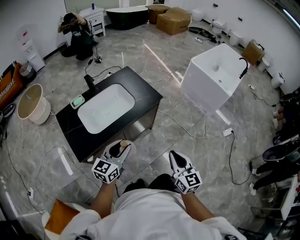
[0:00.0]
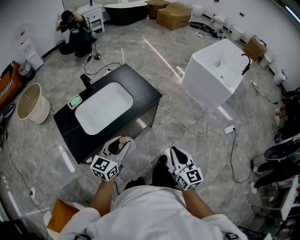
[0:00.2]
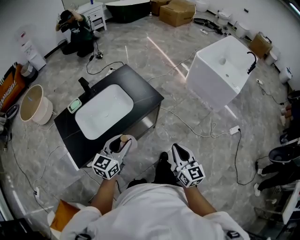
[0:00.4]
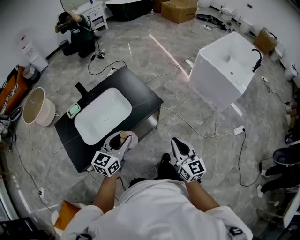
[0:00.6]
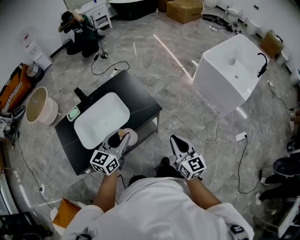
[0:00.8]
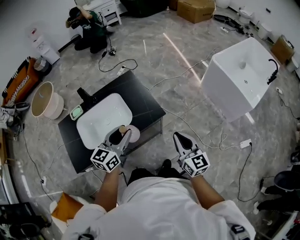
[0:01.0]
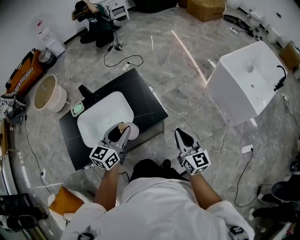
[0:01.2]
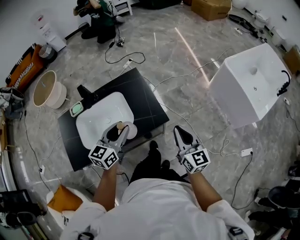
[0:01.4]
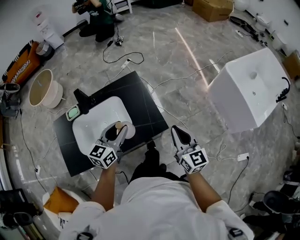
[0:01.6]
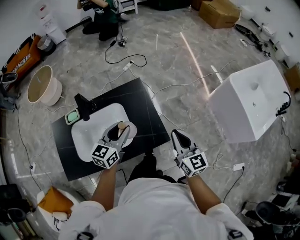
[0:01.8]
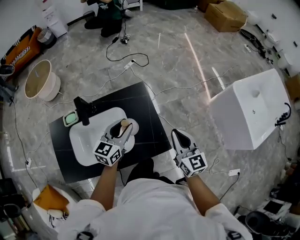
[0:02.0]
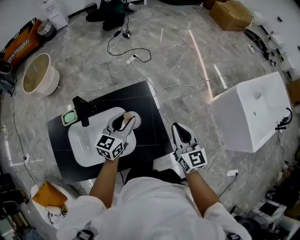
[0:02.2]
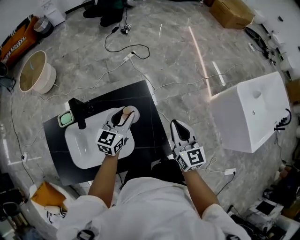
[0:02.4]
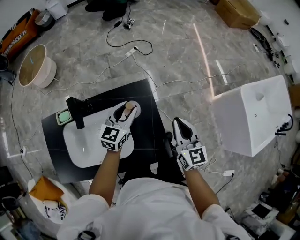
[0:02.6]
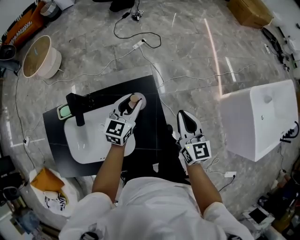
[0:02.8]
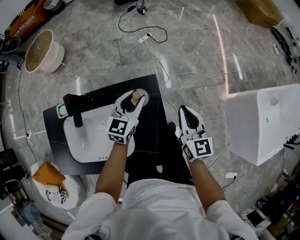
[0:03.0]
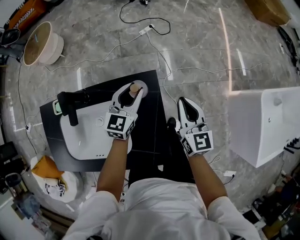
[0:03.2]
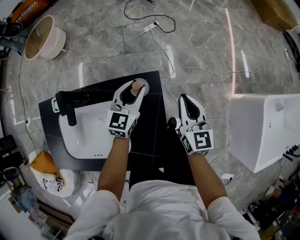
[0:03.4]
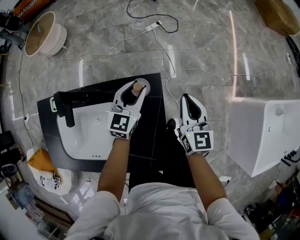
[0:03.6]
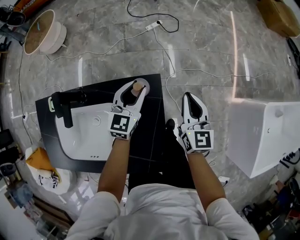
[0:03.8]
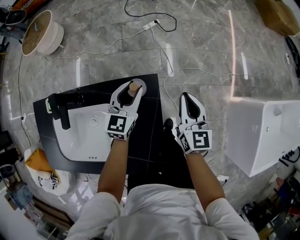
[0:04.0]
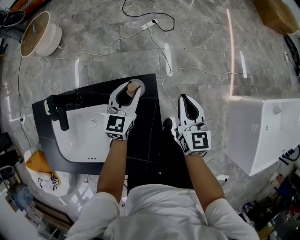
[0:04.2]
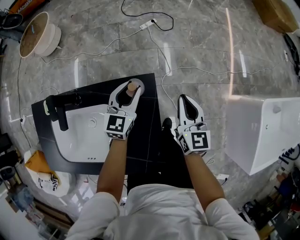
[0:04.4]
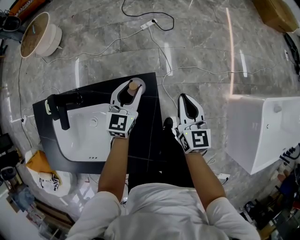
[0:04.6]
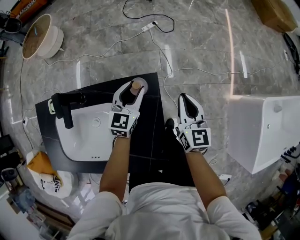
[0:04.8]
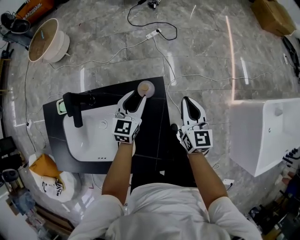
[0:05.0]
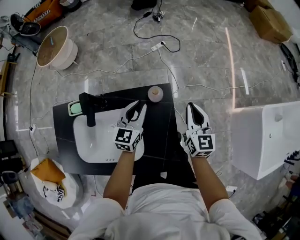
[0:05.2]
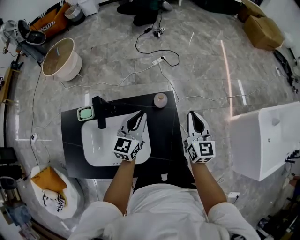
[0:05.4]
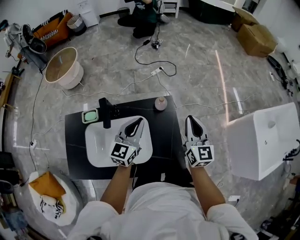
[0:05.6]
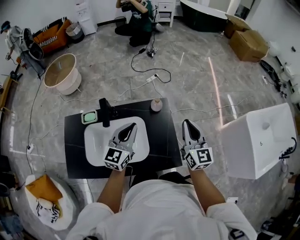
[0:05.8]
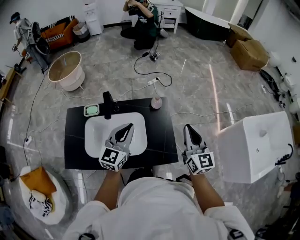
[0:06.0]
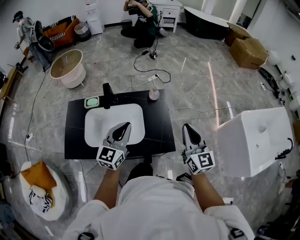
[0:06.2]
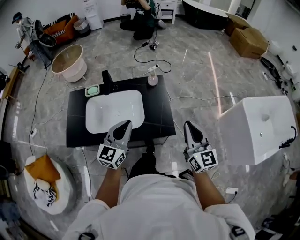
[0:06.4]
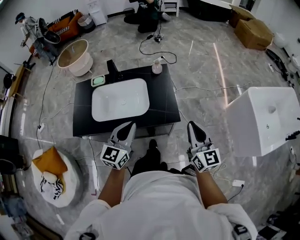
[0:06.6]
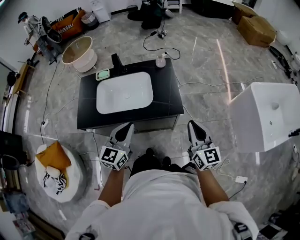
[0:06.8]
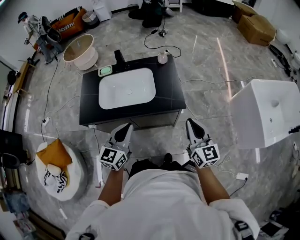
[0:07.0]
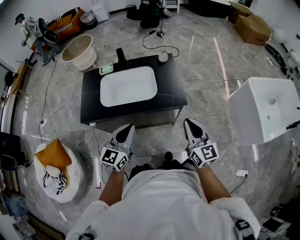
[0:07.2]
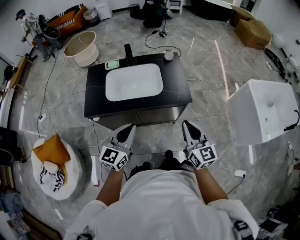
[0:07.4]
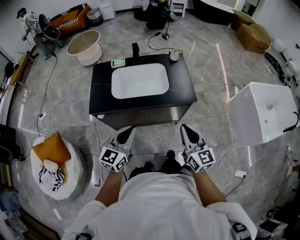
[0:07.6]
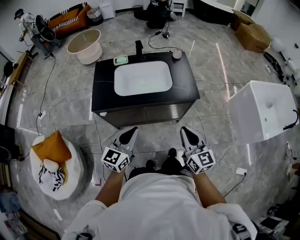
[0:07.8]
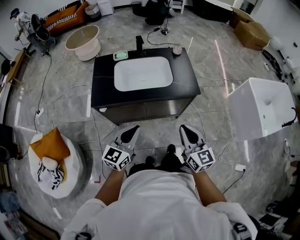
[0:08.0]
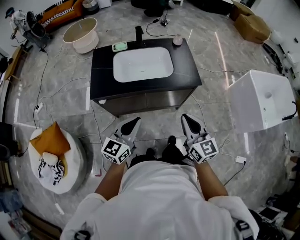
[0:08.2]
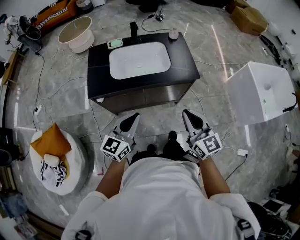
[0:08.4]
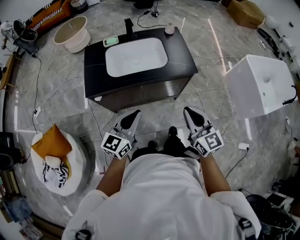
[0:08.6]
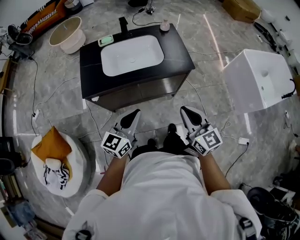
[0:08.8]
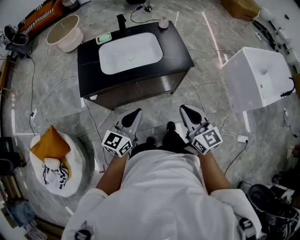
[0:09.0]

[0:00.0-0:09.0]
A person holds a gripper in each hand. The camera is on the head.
0:00.0 to 0:01.6: Both grippers travel together forward, approximately 40 cm. The left gripper changes its angle by approximately 20 degrees.
0:01.6 to 0:03.0: The grippers both shift forward by approximately 30 cm.
0:03.0 to 0:04.4: The right gripper travels forward and downward by about 10 cm. The left gripper heads downward and forward, covering approximately 10 cm.
0:04.4 to 0:06.0: The grippers both shift backward and upward by about 35 cm. The left gripper closes its fingers.
0:06.0 to 0:07.6: The pair of grippers is taken backward, about 40 cm.
0:07.6 to 0:09.0: The left gripper shifts by about 5 cm. The right gripper travels backward by approximately 5 cm.

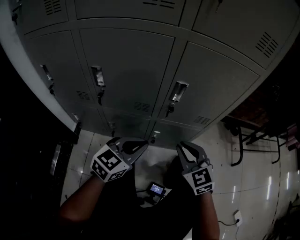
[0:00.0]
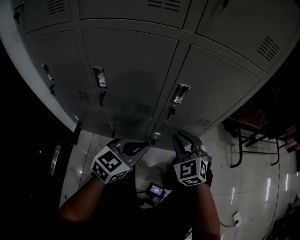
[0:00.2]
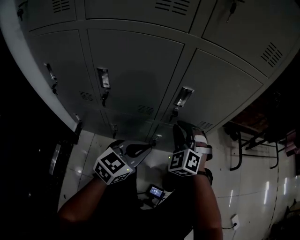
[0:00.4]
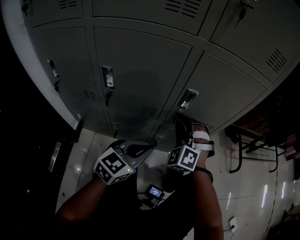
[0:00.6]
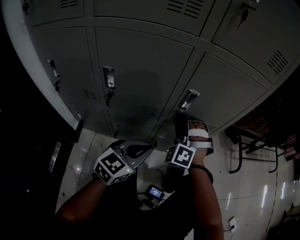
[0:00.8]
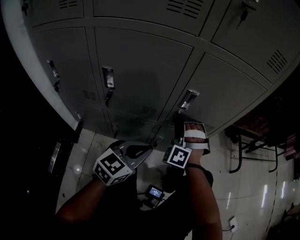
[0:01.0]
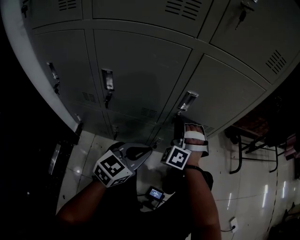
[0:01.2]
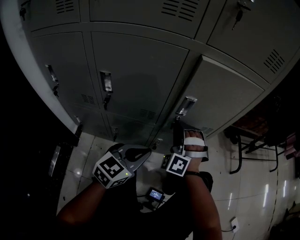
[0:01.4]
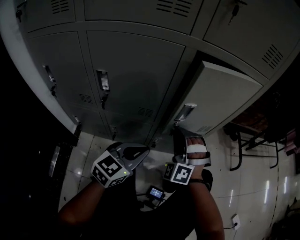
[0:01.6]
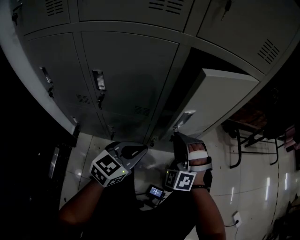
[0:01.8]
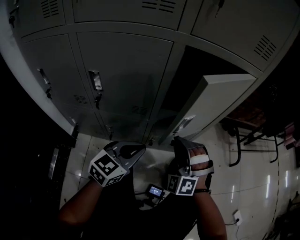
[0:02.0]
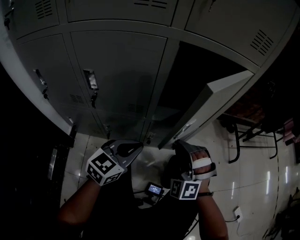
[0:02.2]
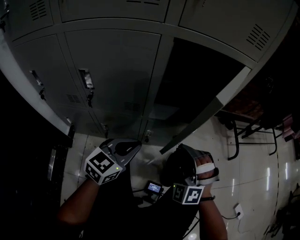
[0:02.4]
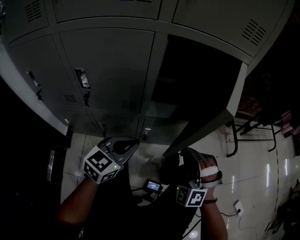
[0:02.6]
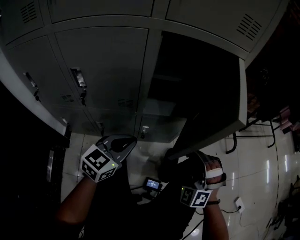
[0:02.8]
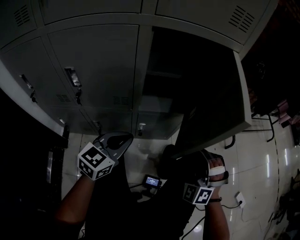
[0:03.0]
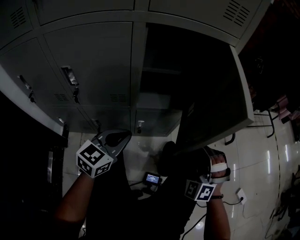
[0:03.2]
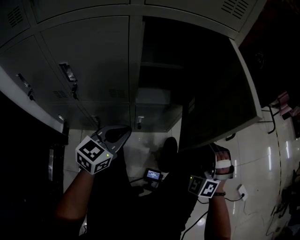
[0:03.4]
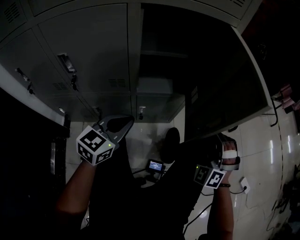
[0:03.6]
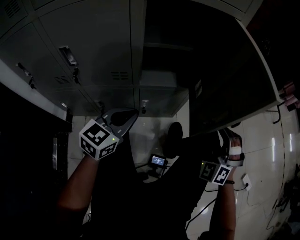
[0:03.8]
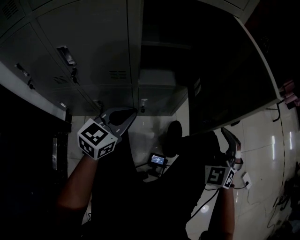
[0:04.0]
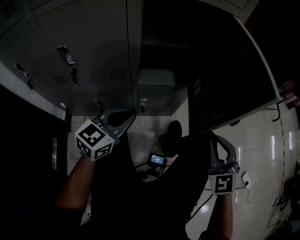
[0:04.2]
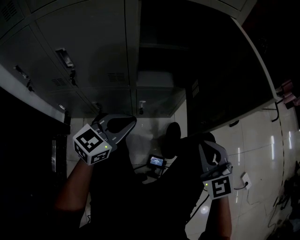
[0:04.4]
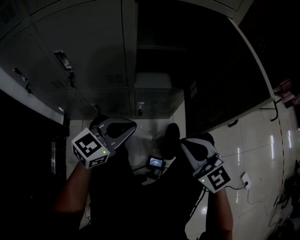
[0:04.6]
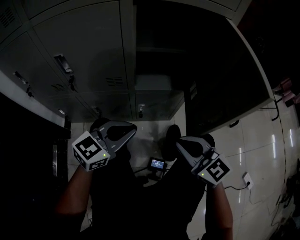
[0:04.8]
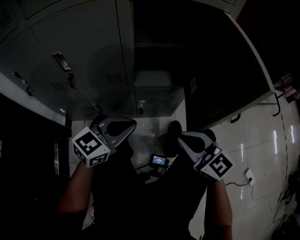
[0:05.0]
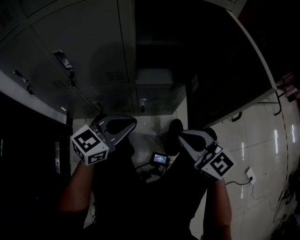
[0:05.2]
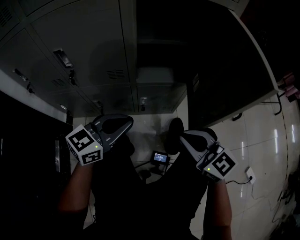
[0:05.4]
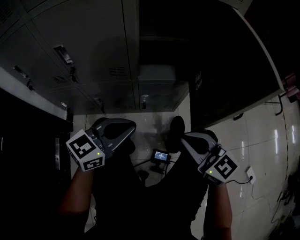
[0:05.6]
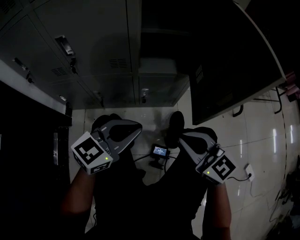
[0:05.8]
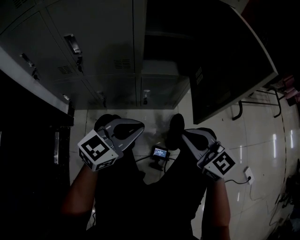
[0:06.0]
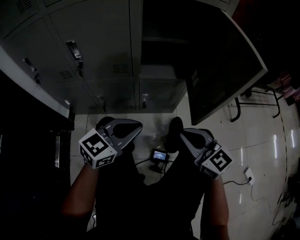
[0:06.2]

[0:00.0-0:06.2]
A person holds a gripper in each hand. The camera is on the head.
0:00.0 to 0:01.6: The right gripper goes some 5 cm to the left, and rolls counterclockwise, seen from behind, by approximately 50 degrees.
0:01.6 to 0:03.2: The right gripper heads to the right, covering some 20 cm.
0:03.2 to 0:04.6: The right gripper heads backward, covering approximately 10 cm, changes its angle by some 70 degrees, and opens and closes again.
0:04.6 to 0:06.2: The left gripper travels backward by approximately 5 cm.

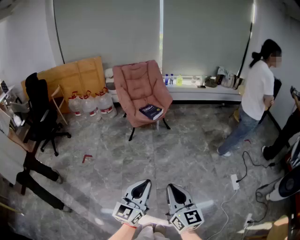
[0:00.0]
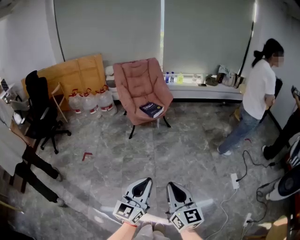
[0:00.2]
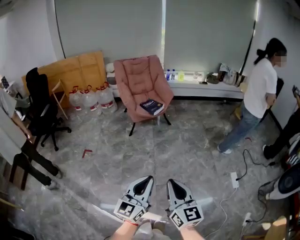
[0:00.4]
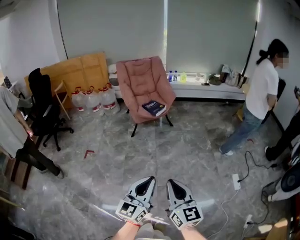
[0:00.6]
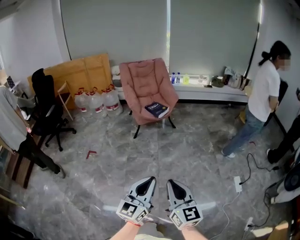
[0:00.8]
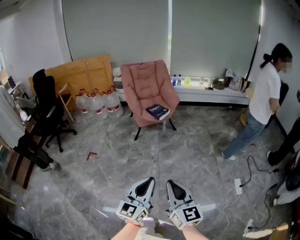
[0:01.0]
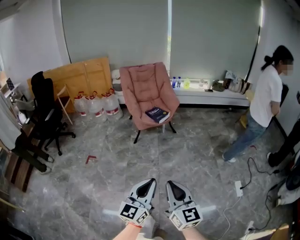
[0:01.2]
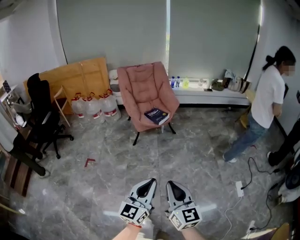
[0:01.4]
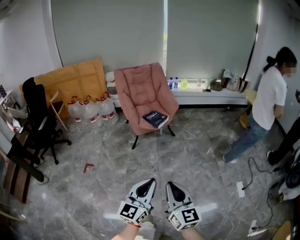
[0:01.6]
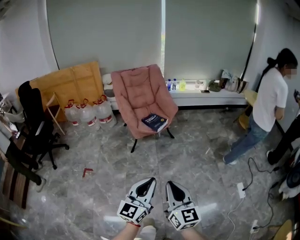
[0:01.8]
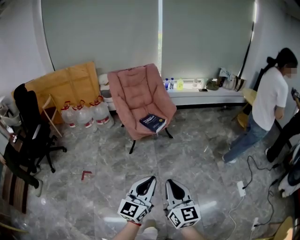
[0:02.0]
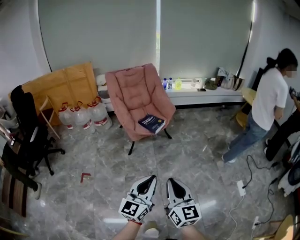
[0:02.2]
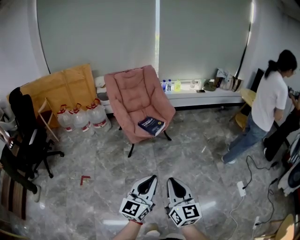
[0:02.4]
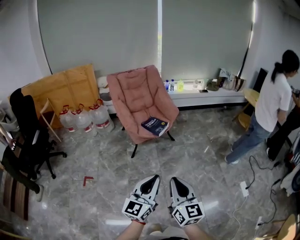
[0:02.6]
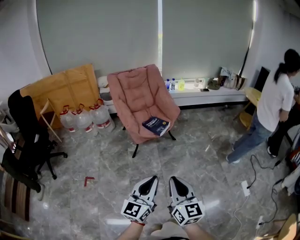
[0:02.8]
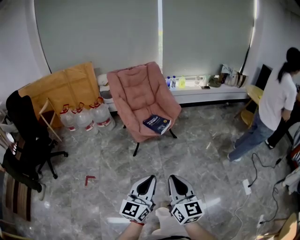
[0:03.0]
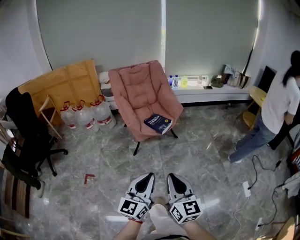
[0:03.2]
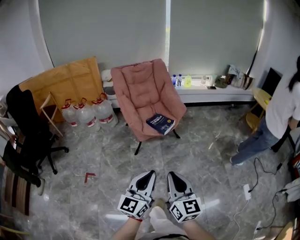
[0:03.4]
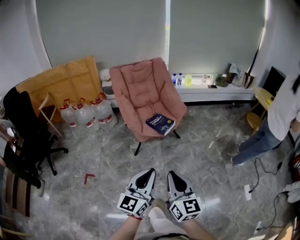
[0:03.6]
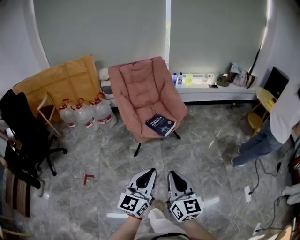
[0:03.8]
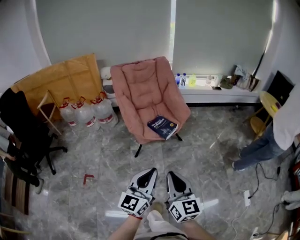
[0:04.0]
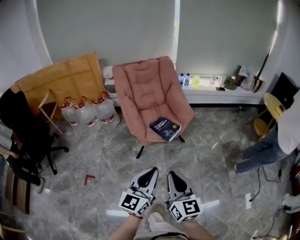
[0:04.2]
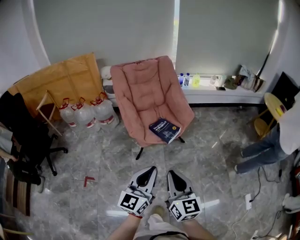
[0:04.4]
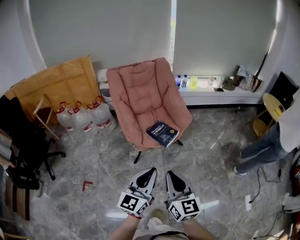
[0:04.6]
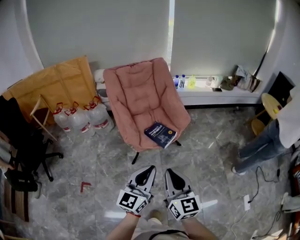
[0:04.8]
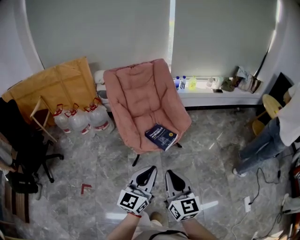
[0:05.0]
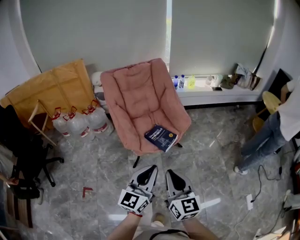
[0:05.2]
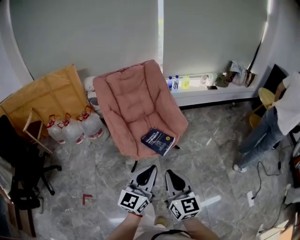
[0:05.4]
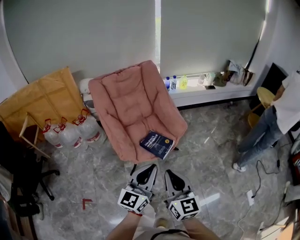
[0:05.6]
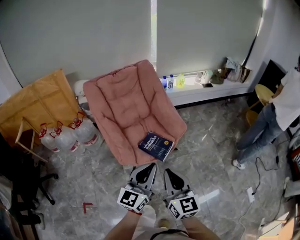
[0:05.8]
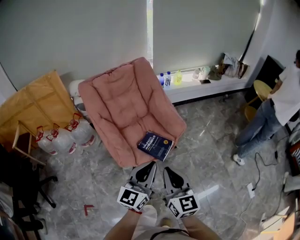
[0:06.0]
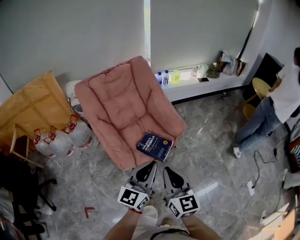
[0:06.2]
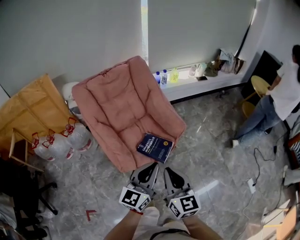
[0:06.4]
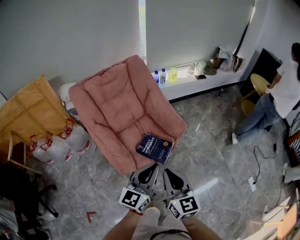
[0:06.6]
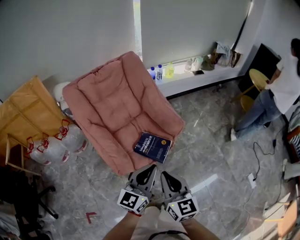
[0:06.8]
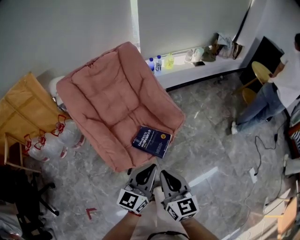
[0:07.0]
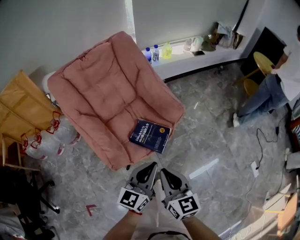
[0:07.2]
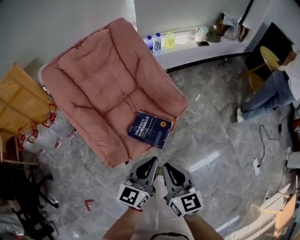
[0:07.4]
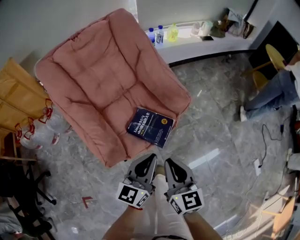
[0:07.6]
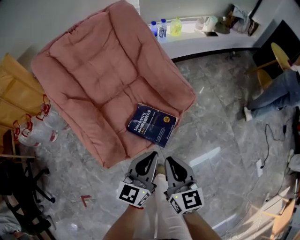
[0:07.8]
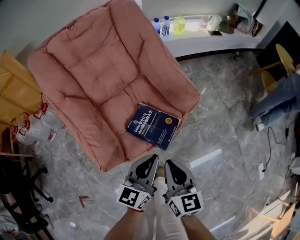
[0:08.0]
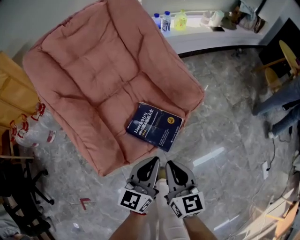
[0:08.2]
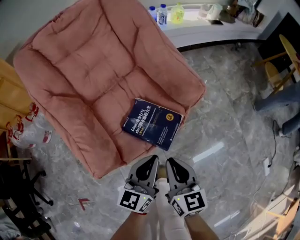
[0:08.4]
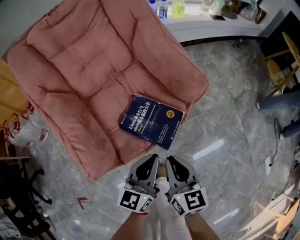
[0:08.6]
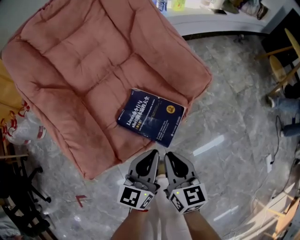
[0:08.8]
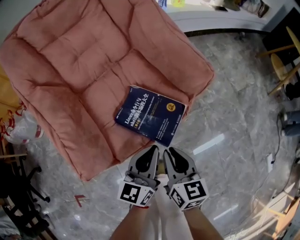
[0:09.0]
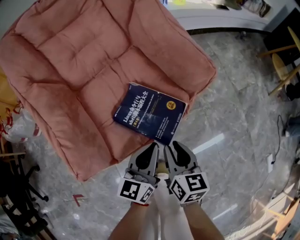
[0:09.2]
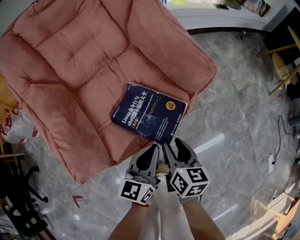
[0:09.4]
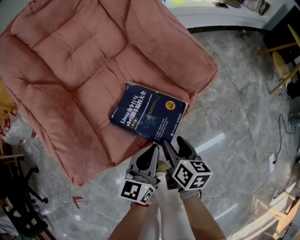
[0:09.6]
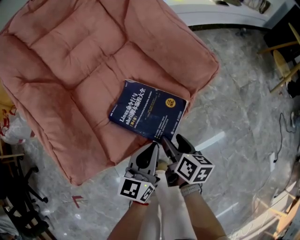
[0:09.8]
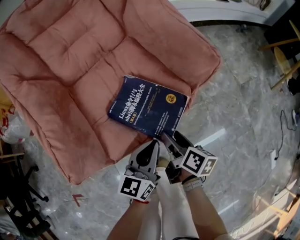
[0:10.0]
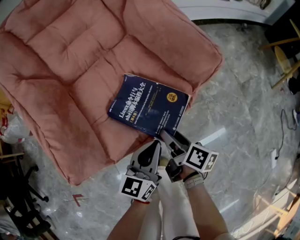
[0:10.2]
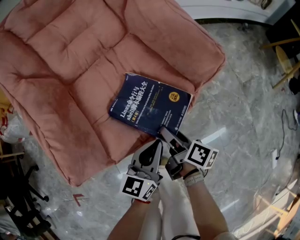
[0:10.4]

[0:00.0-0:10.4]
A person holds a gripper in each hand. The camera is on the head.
0:00.0 to 0:01.4: The grippers both shift forward by about 10 cm.
0:01.4 to 0:03.0: Both grippers move forward and to the left, approximately 20 cm.
0:03.0 to 0:04.4: Both grippers travel together forward, some 20 cm.
0:04.4 to 0:06.0: Both grippers travel together forward, about 20 cm.
0:06.0 to 0:07.4: Both grippers move downward and forward, approximately 15 cm.
0:07.4 to 0:09.0: The two grippers go approximately 25 cm downward.
0:09.0 to 0:10.4: The right gripper moves downward and forward, about 15 cm, rolls clockwise, seen from behind, by approximately 40 degrees, and opens its fingers, while the left gripper goes some 10 cm downward.
